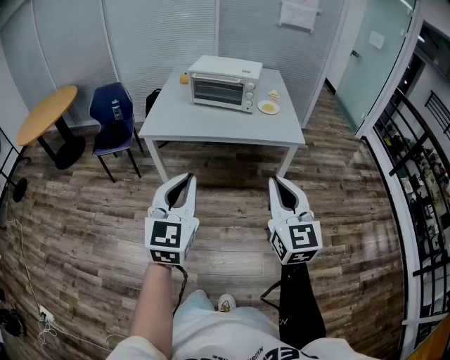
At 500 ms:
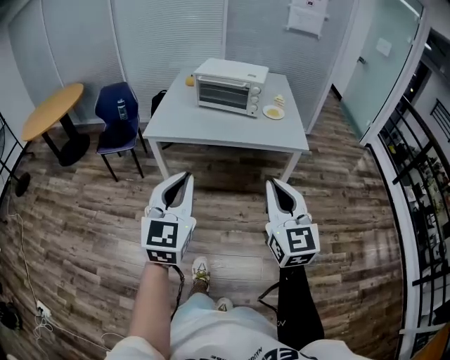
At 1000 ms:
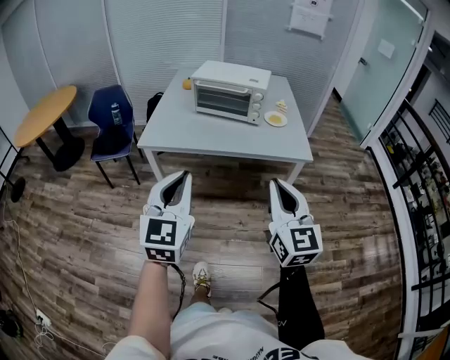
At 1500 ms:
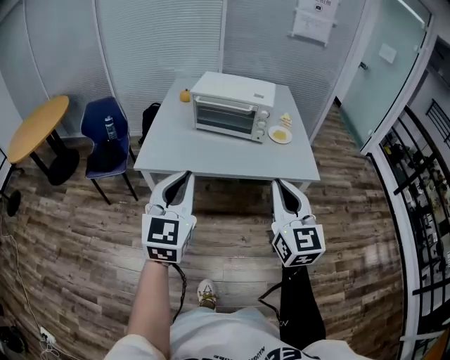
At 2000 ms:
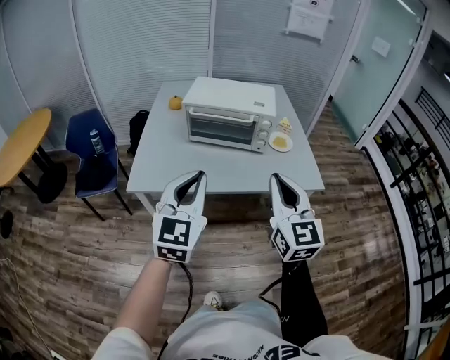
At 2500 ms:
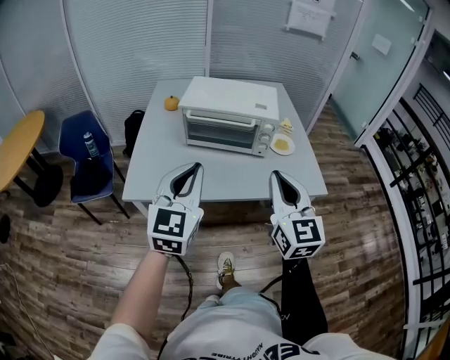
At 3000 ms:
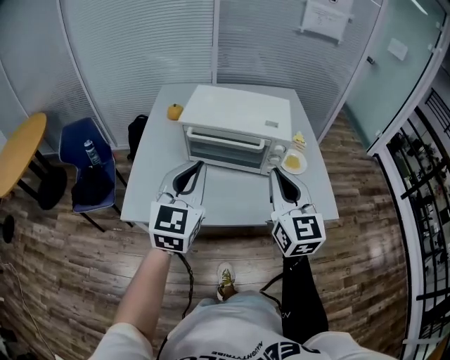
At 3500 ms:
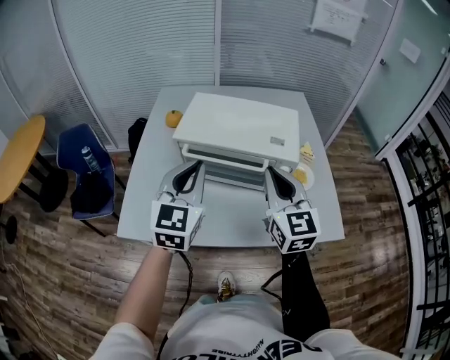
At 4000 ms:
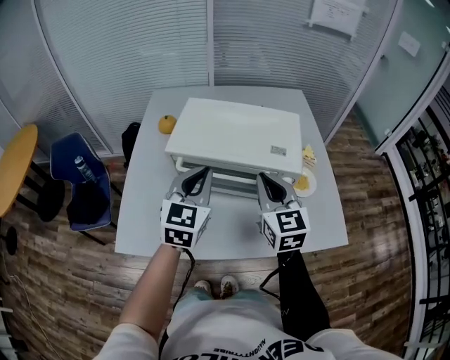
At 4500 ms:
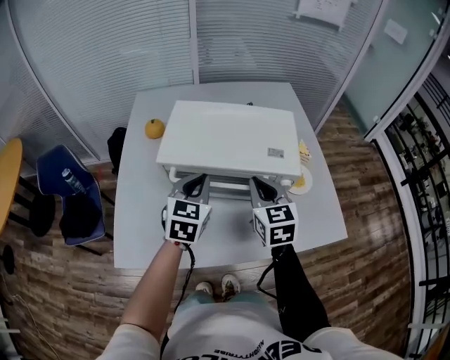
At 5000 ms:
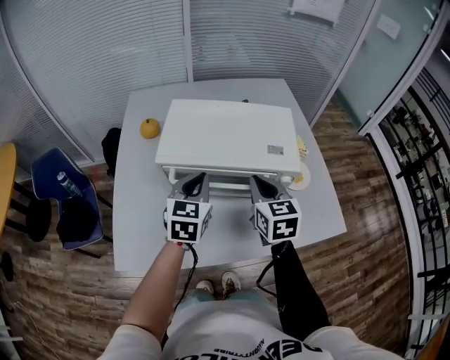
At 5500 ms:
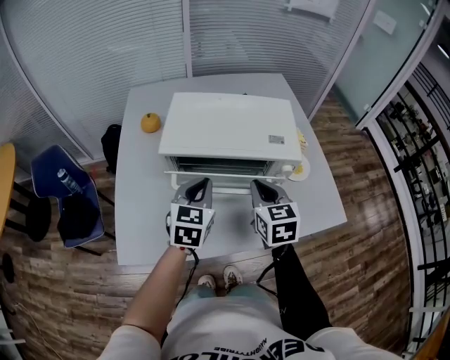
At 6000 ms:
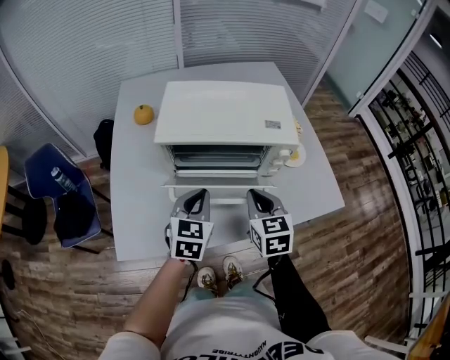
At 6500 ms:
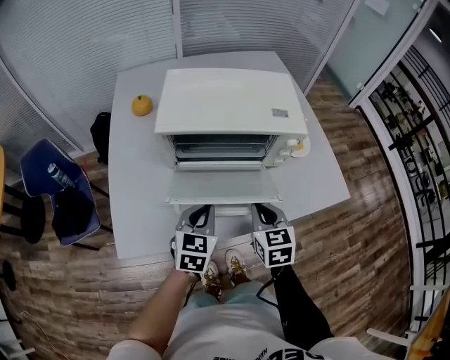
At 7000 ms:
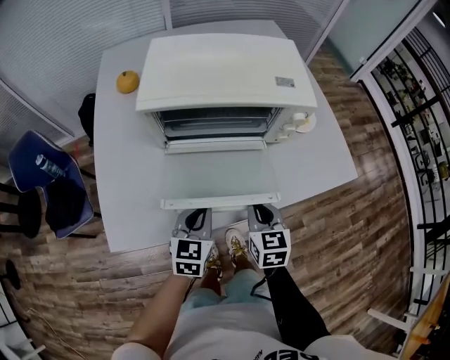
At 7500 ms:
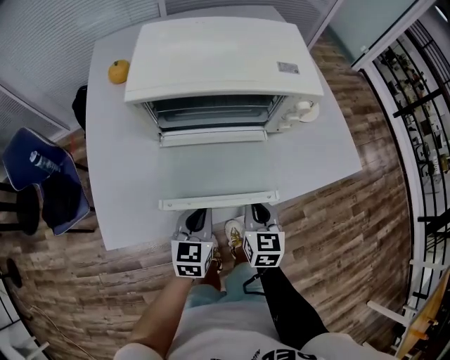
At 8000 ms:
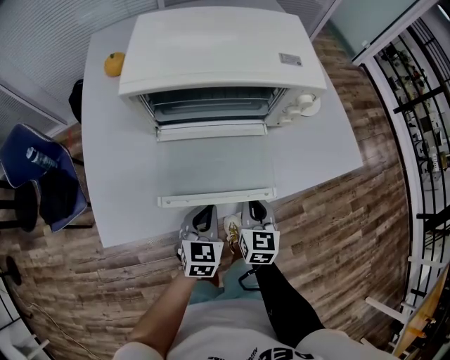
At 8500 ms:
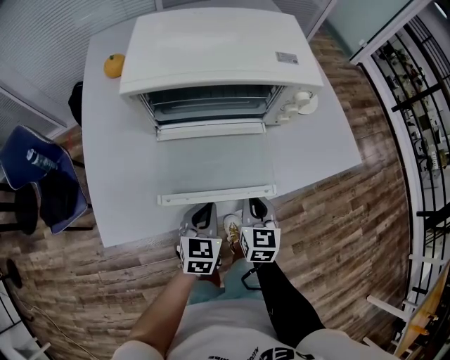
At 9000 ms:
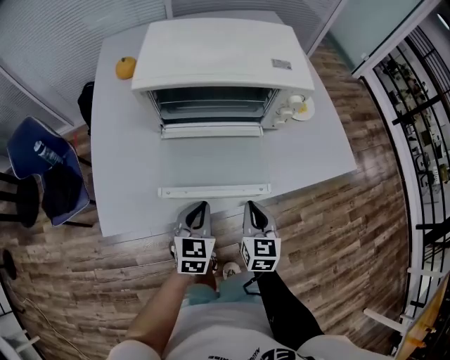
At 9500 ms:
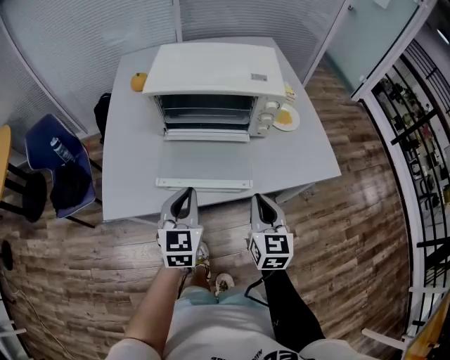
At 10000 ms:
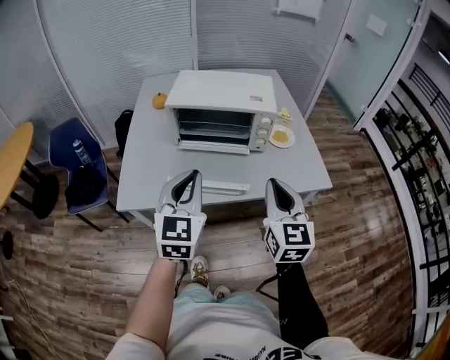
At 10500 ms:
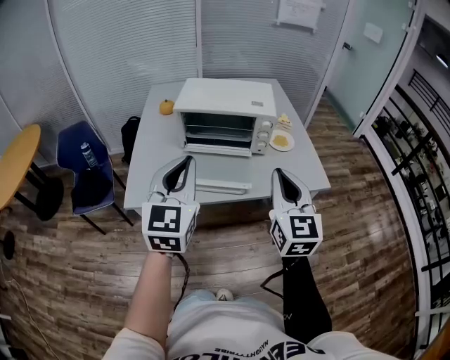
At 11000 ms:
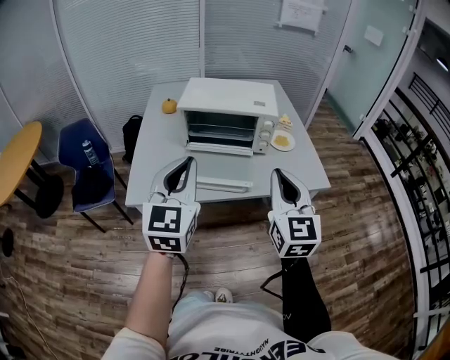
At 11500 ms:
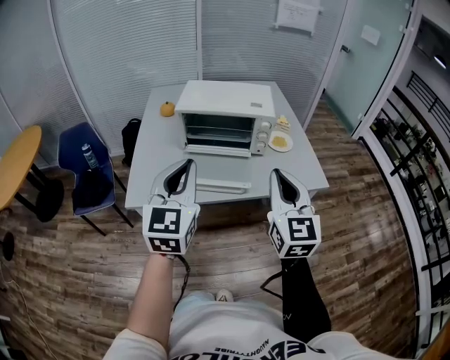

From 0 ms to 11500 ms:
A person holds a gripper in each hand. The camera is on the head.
From 0 ms to 2000 ms: Both grippers move forward, about 35 cm.
From 2000 ms to 4000 ms: The grippers both shift forward by about 35 cm.
From 4000 ms to 6000 ms: The two grippers go roughly 15 cm downward and backward. The right gripper turns by roughly 20 degrees.
From 6000 ms to 7500 ms: The two grippers go about 20 cm downward and backward.
From 7500 ms to 9500 ms: The right gripper goes some 15 cm upward, to the right and backward. The left gripper travels upward by roughly 15 cm.
From 9500 ms to 11500 ms: Both grippers travel together upward and backward, about 25 cm. The right gripper turns by roughly 20 degrees.

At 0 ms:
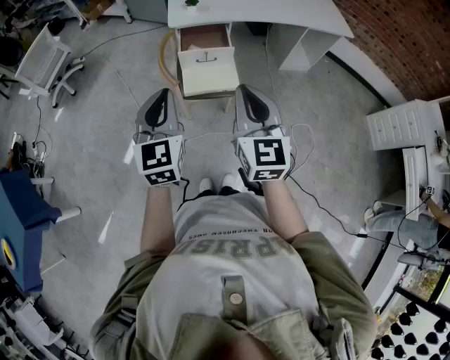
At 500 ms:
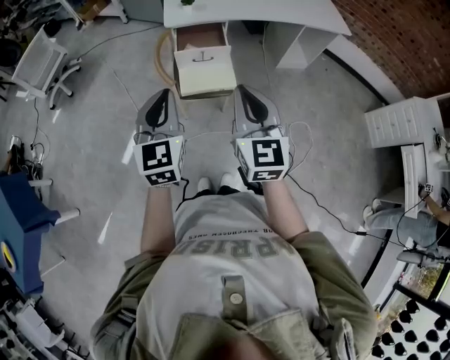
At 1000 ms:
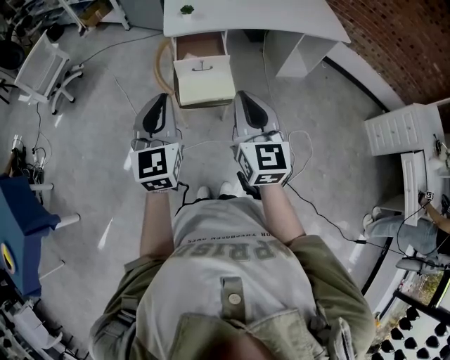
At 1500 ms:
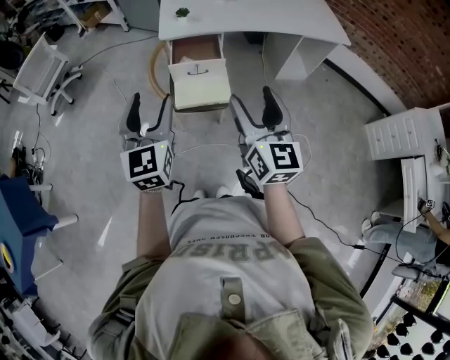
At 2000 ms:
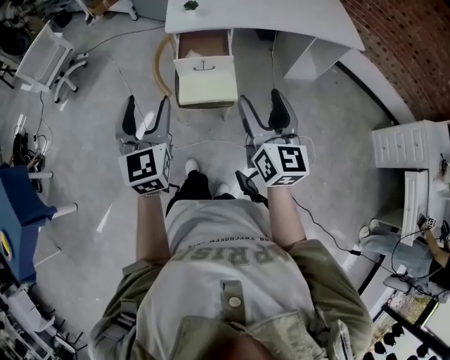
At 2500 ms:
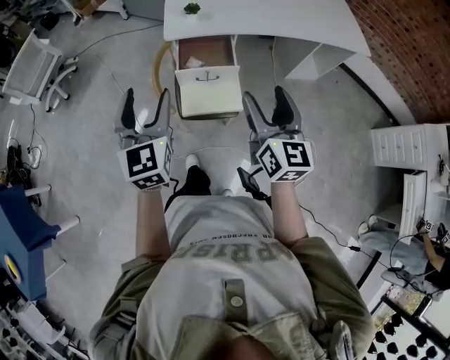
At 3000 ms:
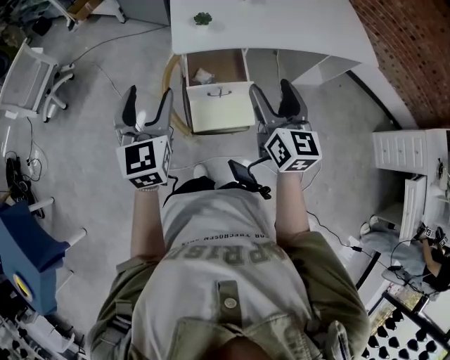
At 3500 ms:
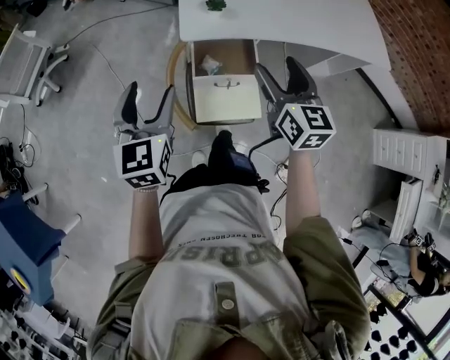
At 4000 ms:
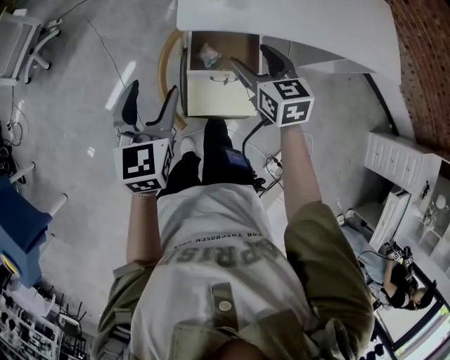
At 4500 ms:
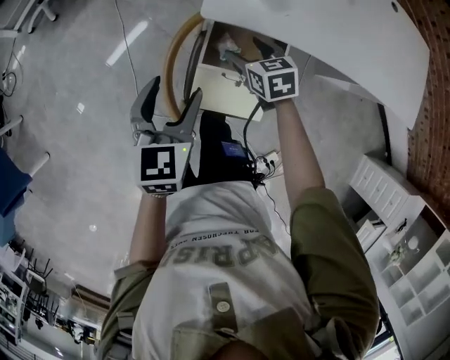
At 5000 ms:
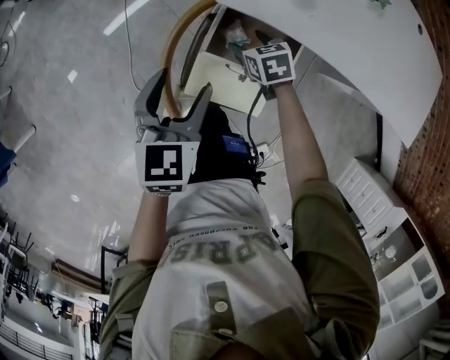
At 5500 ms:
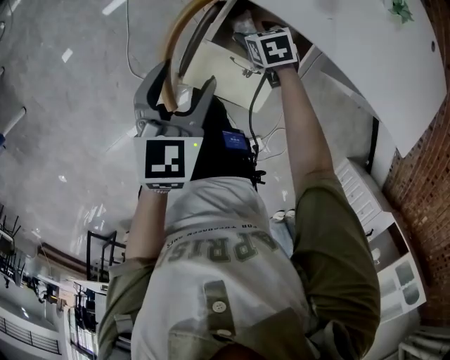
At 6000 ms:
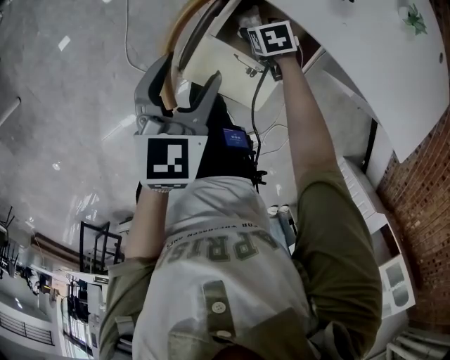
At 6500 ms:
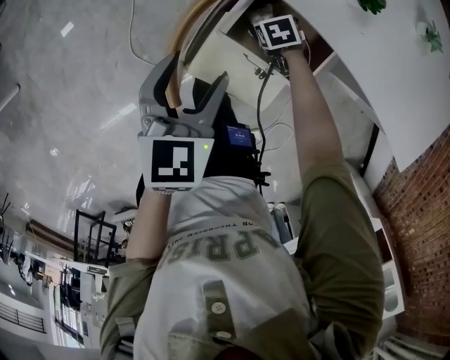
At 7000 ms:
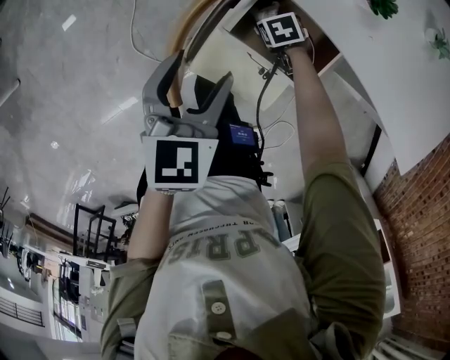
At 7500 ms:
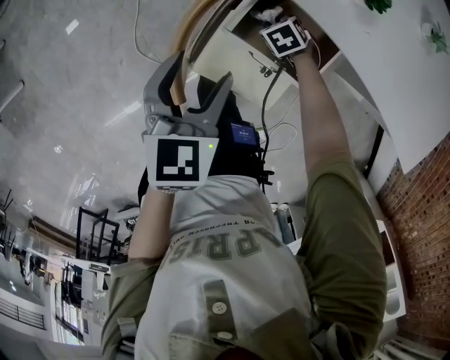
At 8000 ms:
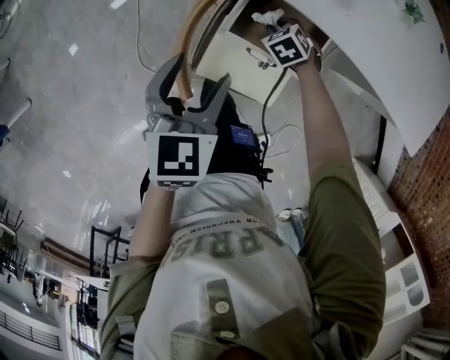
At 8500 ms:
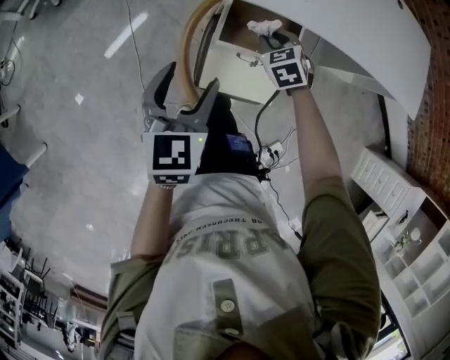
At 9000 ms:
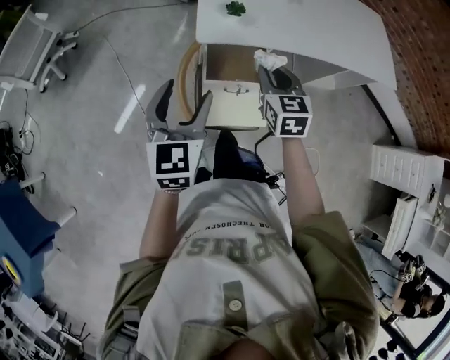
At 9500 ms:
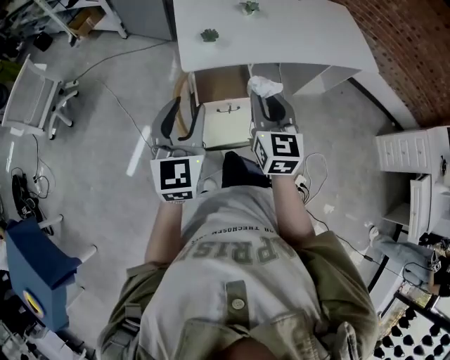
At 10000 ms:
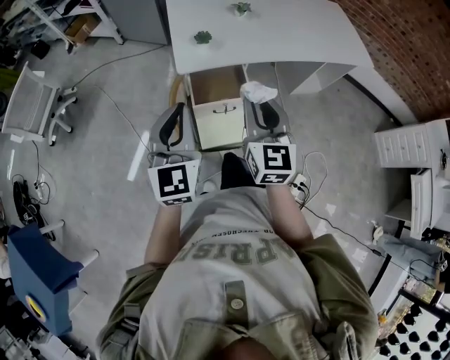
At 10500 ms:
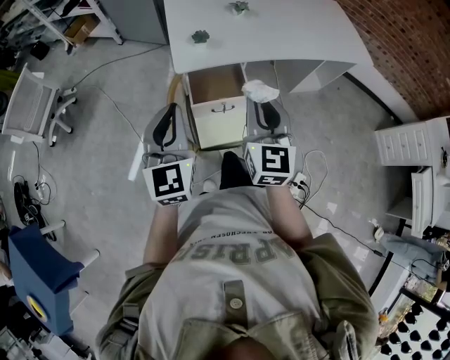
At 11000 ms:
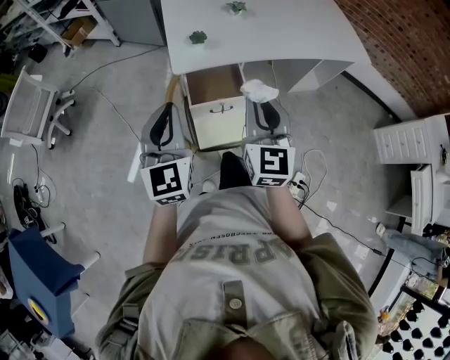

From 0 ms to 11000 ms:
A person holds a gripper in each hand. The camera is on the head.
From 0 ms to 2000 ms: The left gripper is displaced forward by about 5 cm, and opens. Meanwhile the right gripper heads to the right and forward, covering some 10 cm, and opens its fingers.
From 2000 ms to 3500 ms: The right gripper heads forward, covering some 30 cm. Meanwhile the left gripper travels forward and to the left by about 25 cm.
From 3500 ms to 5500 ms: The left gripper travels downward by some 20 cm, and swivels approximately 30 degrees. The right gripper goes some 40 cm downward, and tilts its fingers approximately 60 degrees downward.
From 5500 ms to 7500 ms: The right gripper travels downward by about 10 cm, changes its angle by approximately 20 degrees, and closes its fingers.
From 7500 ms to 9000 ms: The left gripper shifts about 20 cm upward, and changes its angle by roughly 40 degrees; the right gripper is displaced upward by approximately 40 cm, and angles its fingers upward, by some 50 degrees.
From 9000 ms to 11000 ms: The left gripper is displaced upward by approximately 5 cm, and closes, while the right gripper travels upward and backward by about 20 cm, and swivels roughly 30 degrees.

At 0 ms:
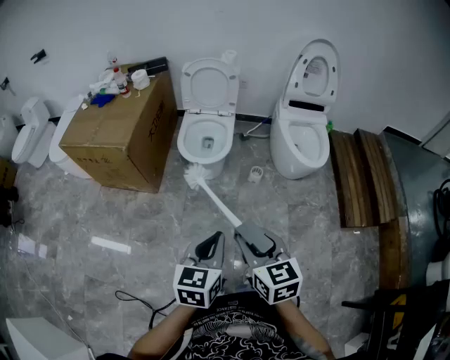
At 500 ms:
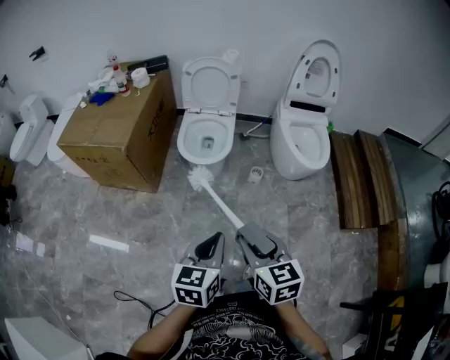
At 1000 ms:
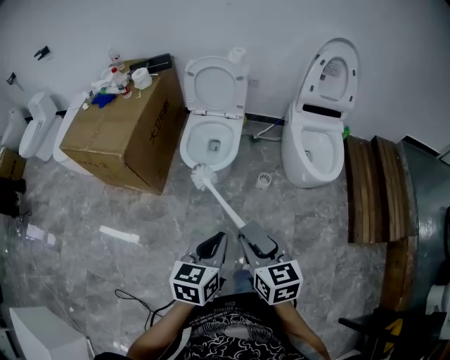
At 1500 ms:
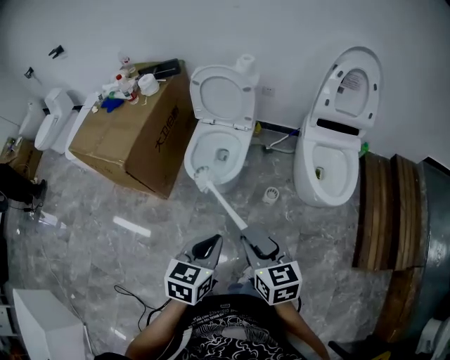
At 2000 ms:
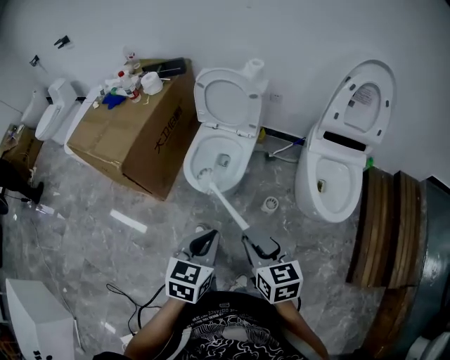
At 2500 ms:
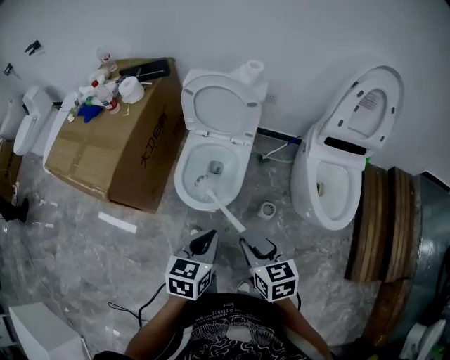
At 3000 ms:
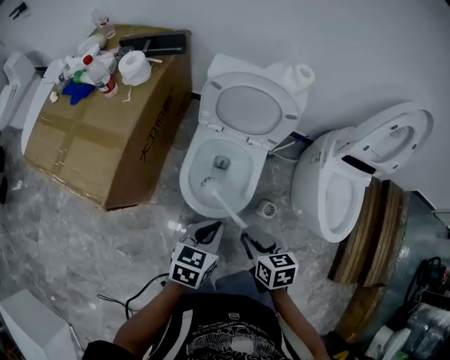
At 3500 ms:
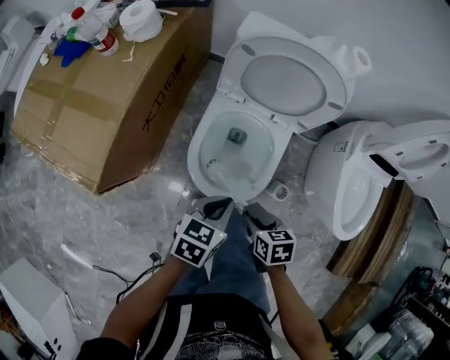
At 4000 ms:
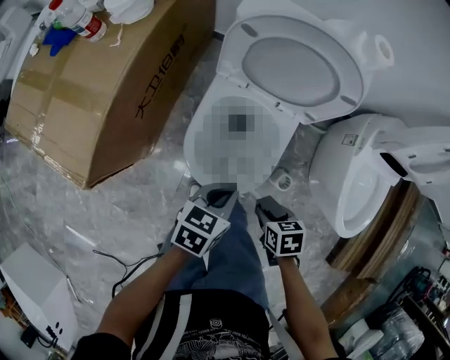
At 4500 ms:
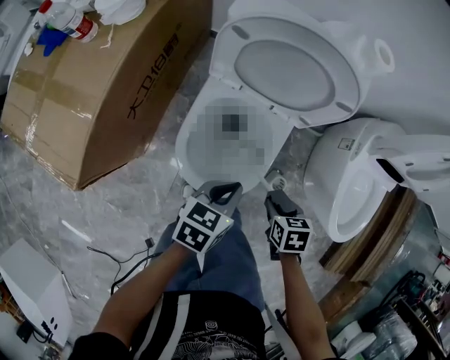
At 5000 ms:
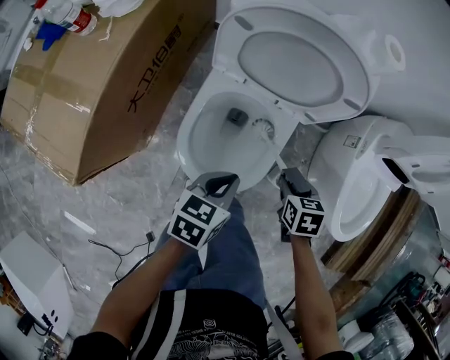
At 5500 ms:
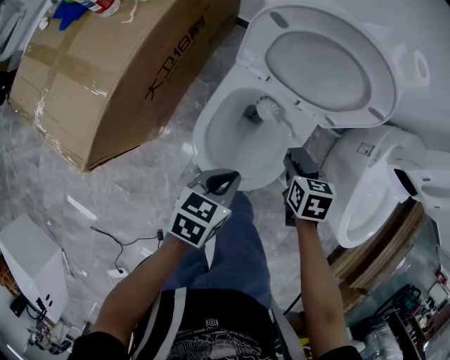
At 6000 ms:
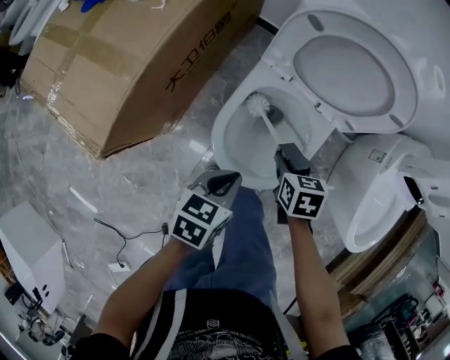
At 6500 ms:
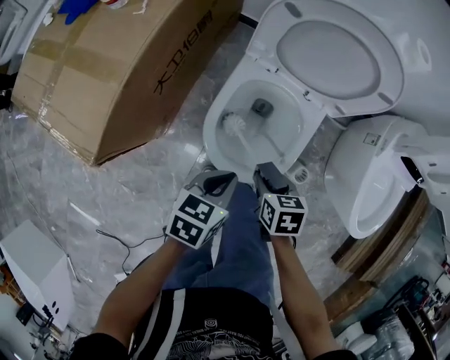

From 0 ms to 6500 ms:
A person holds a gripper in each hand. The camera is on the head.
From 0 ms to 2000 ms: The left gripper heads forward, covering roughly 25 cm, while the right gripper moves forward and to the right, some 30 cm.
From 2000 ms to 4500 ms: Both grippers travel together forward and downward, roughly 40 cm. The right gripper angles its fingers downward, by roughly 40 degrees; the left gripper turns by some 30 degrees.
From 4500 ms to 6500 ms: The right gripper shifts roughly 15 cm to the left; the left gripper is displaced to the left and backward by about 10 cm.
